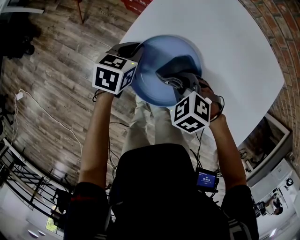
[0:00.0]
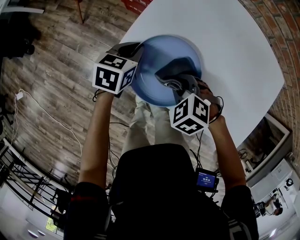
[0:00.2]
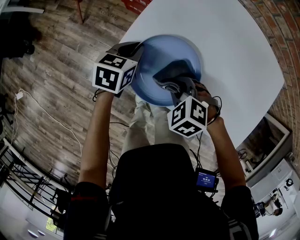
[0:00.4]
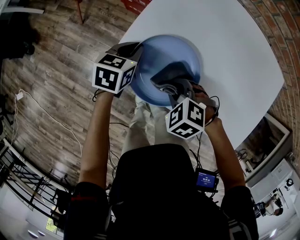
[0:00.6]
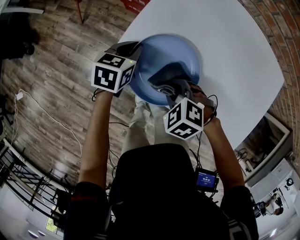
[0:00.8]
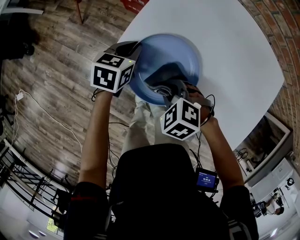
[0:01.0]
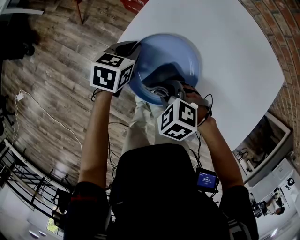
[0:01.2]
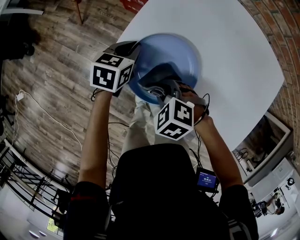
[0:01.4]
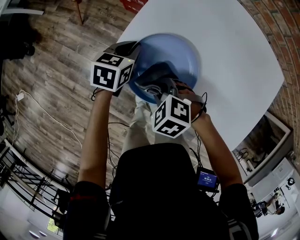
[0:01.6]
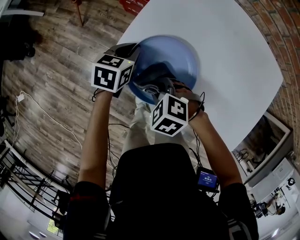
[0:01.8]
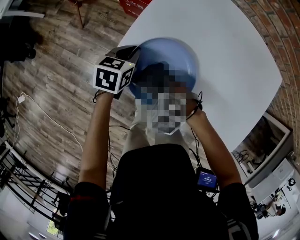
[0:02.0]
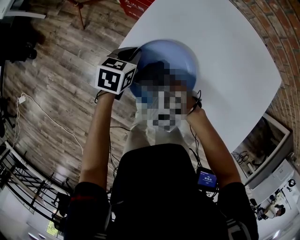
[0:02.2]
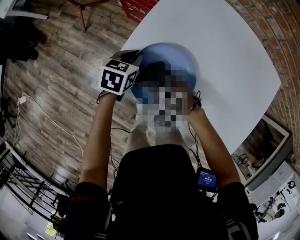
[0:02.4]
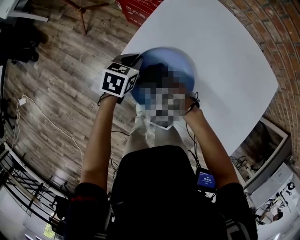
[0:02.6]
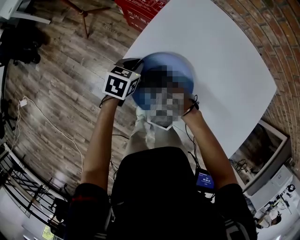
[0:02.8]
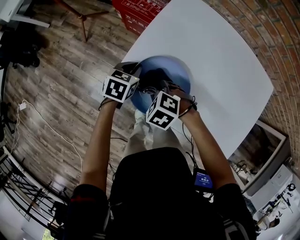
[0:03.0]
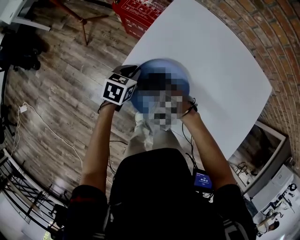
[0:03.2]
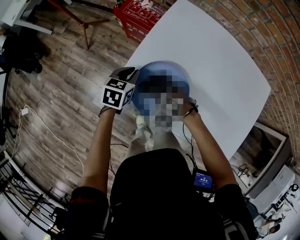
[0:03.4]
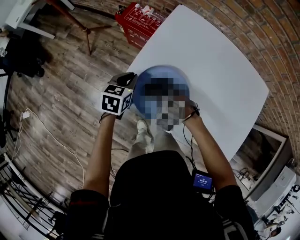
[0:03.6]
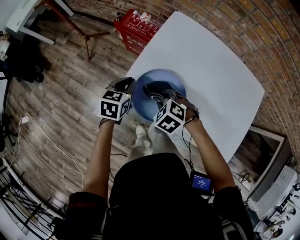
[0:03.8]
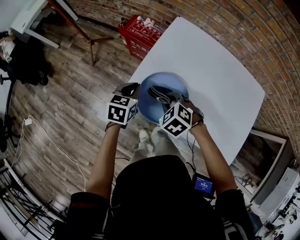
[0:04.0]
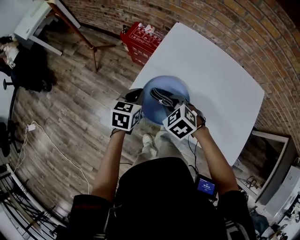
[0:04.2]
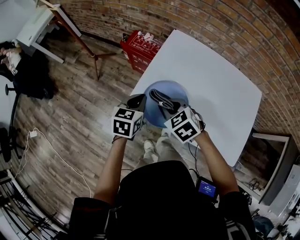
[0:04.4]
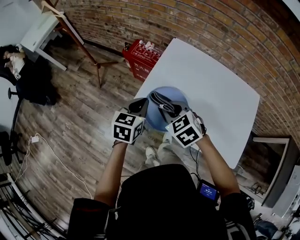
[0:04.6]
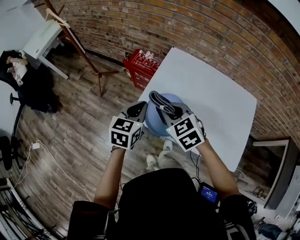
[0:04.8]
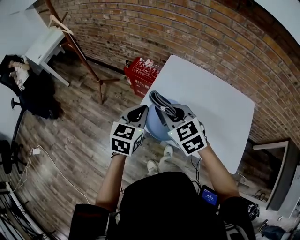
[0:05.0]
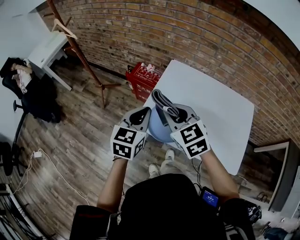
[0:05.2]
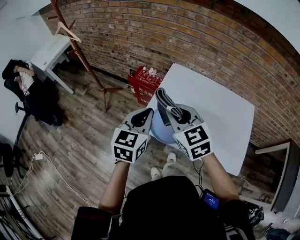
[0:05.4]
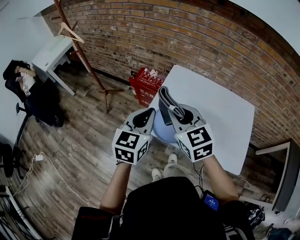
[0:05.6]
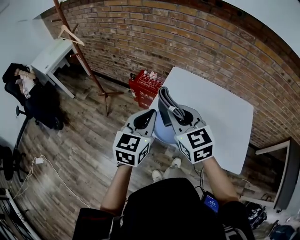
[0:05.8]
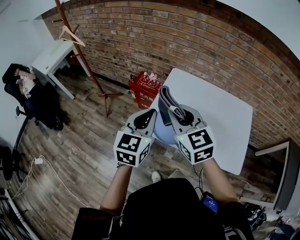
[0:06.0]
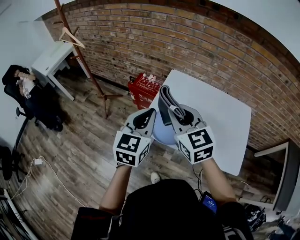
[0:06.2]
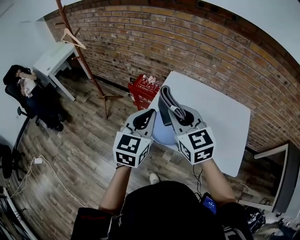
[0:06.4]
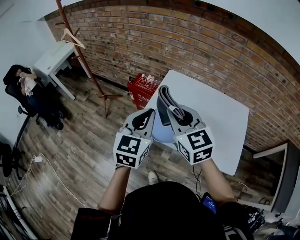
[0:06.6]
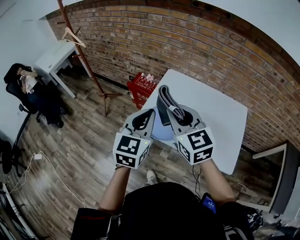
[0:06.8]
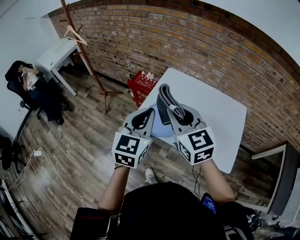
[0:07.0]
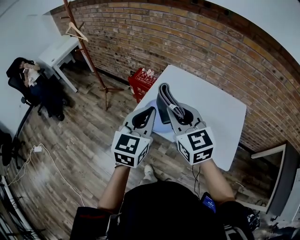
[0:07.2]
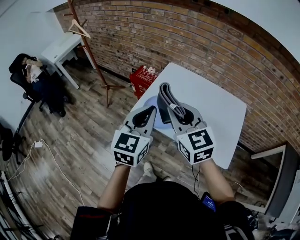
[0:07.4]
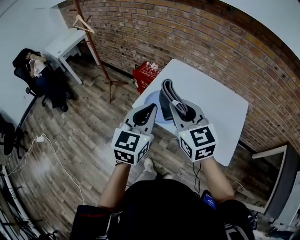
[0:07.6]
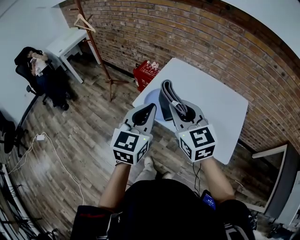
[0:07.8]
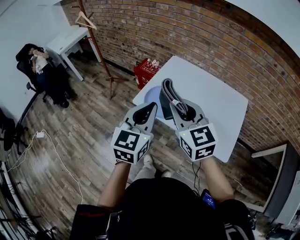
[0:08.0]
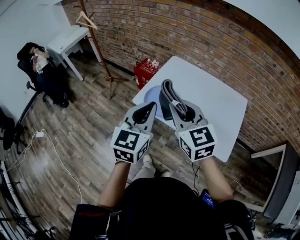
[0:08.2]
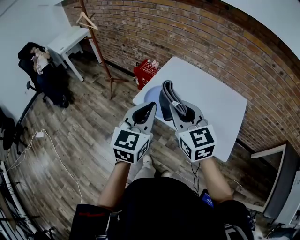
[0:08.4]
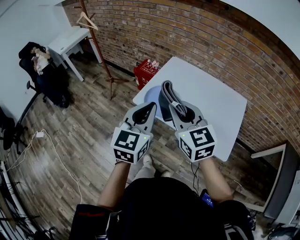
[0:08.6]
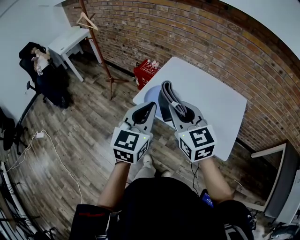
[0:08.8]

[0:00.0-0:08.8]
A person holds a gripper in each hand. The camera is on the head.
0.0 to 1.4 s: The right gripper heads to the left, covering about 5 cm.
1.4 to 3.0 s: The right gripper shifts approximately 5 cm forward.
3.0 to 4.4 s: The right gripper moves upward, approximately 15 cm, and changes its angle by some 30 degrees. Meanwhile the left gripper travels upward and backward by roughly 15 cm.
4.4 to 5.8 s: Both grippers move upward, some 20 cm. The right gripper angles its fingers upward, by some 30 degrees. Meanwhile the left gripper changes its angle by about 30 degrees.
5.8 to 7.4 s: Both grippers travel together backward and to the right, some 15 cm.
7.4 to 8.8 s: The two grippers go about 5 cm backward.

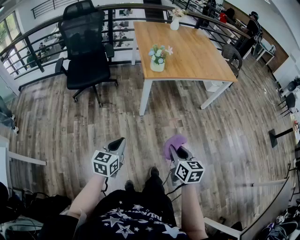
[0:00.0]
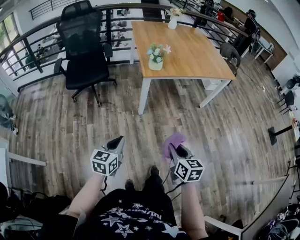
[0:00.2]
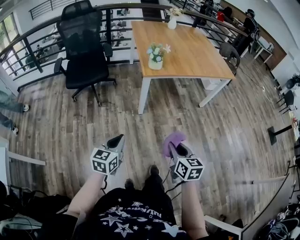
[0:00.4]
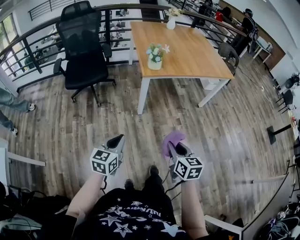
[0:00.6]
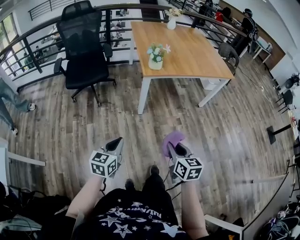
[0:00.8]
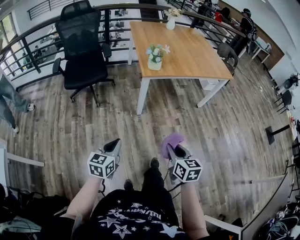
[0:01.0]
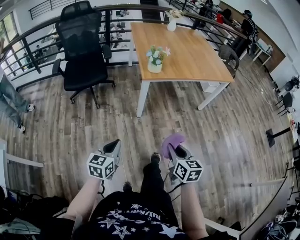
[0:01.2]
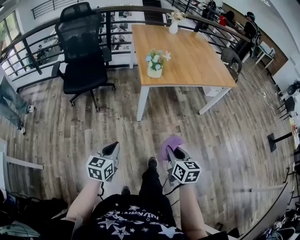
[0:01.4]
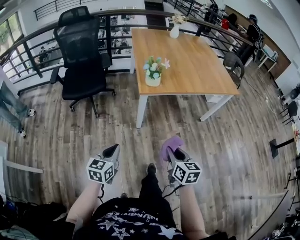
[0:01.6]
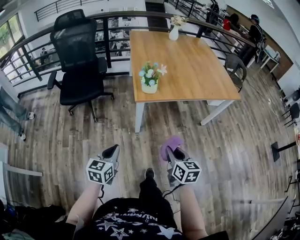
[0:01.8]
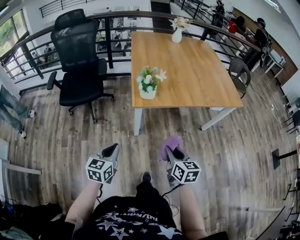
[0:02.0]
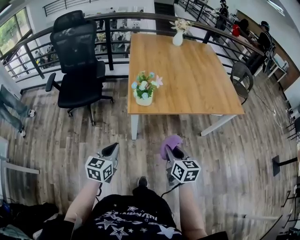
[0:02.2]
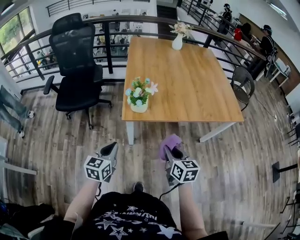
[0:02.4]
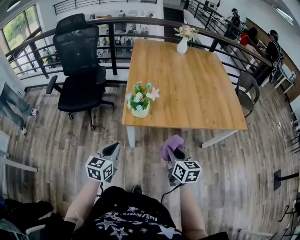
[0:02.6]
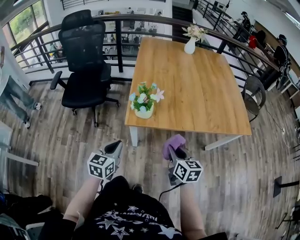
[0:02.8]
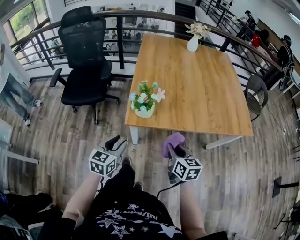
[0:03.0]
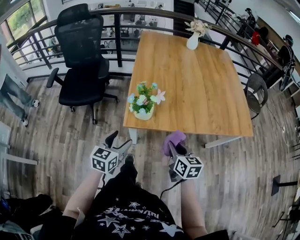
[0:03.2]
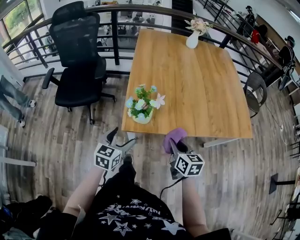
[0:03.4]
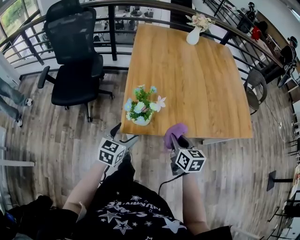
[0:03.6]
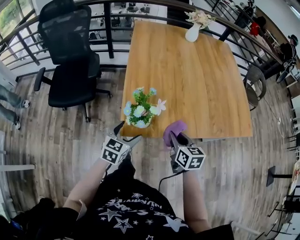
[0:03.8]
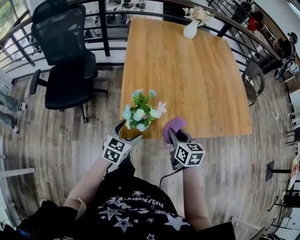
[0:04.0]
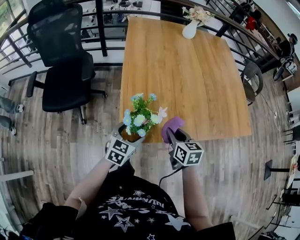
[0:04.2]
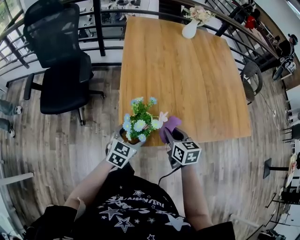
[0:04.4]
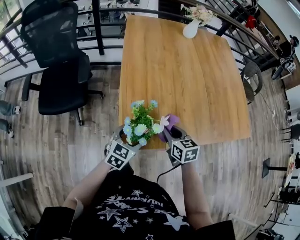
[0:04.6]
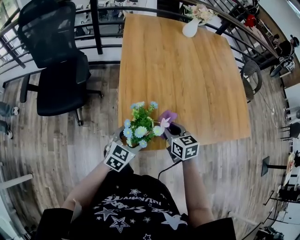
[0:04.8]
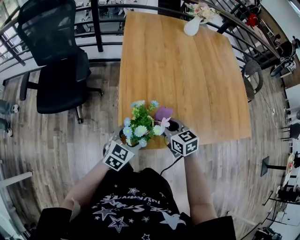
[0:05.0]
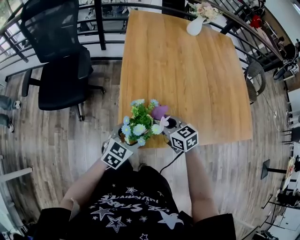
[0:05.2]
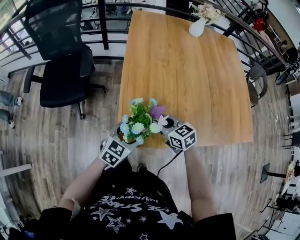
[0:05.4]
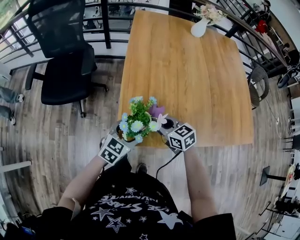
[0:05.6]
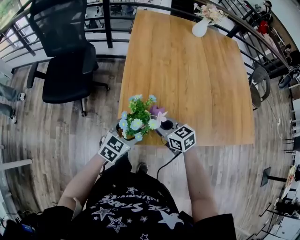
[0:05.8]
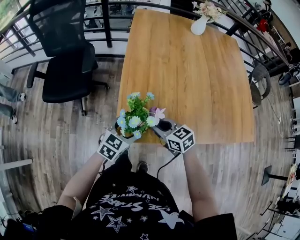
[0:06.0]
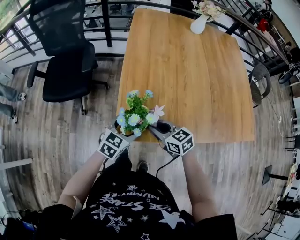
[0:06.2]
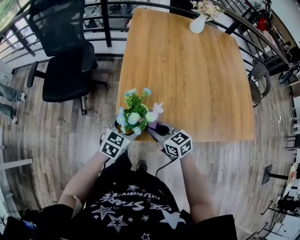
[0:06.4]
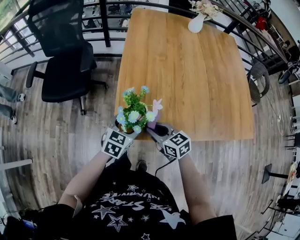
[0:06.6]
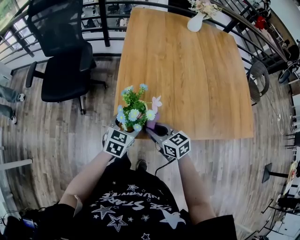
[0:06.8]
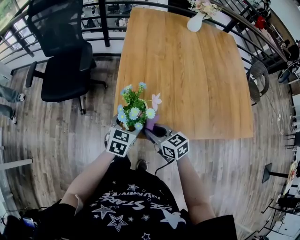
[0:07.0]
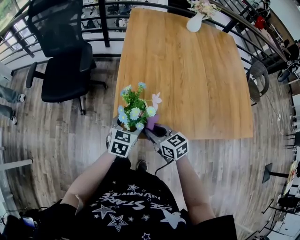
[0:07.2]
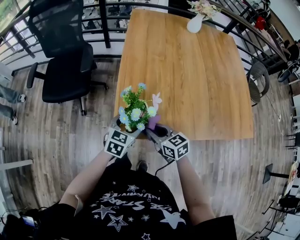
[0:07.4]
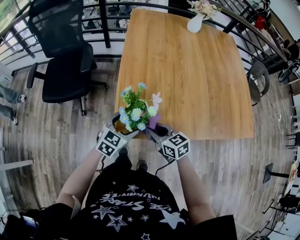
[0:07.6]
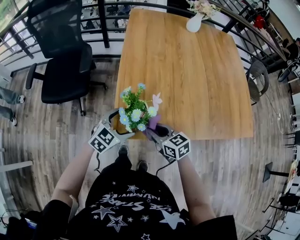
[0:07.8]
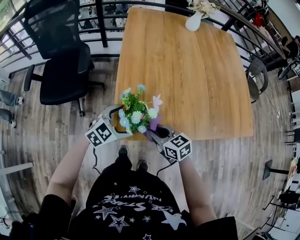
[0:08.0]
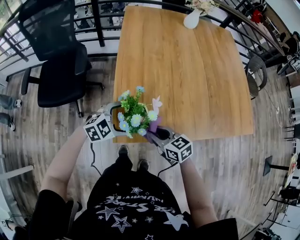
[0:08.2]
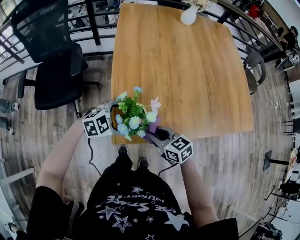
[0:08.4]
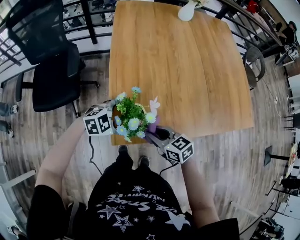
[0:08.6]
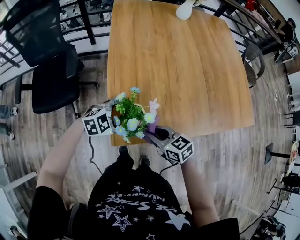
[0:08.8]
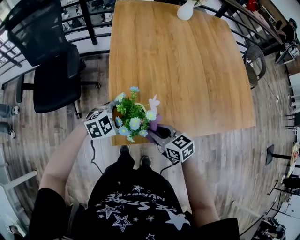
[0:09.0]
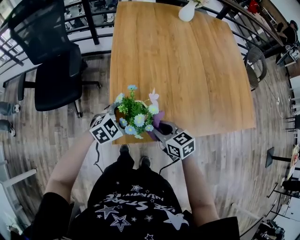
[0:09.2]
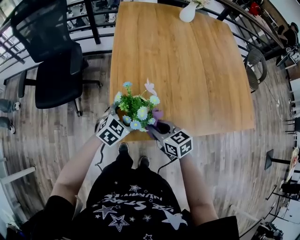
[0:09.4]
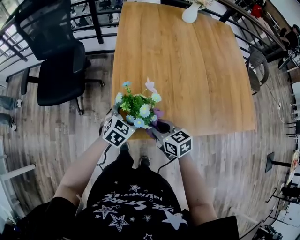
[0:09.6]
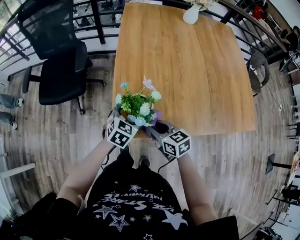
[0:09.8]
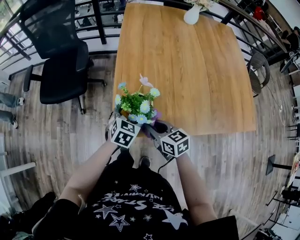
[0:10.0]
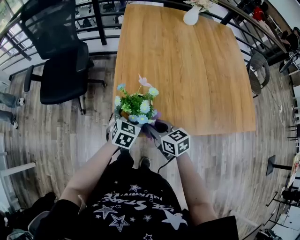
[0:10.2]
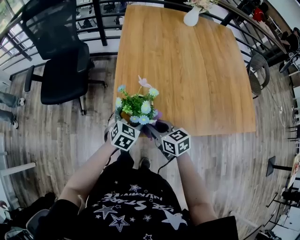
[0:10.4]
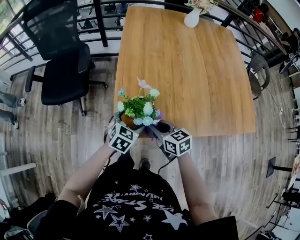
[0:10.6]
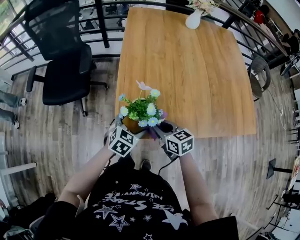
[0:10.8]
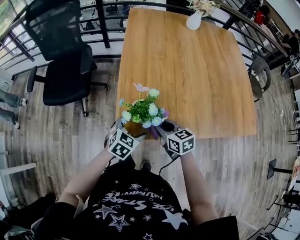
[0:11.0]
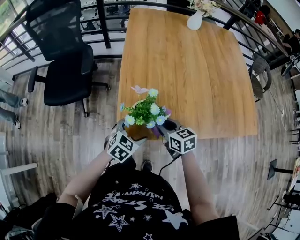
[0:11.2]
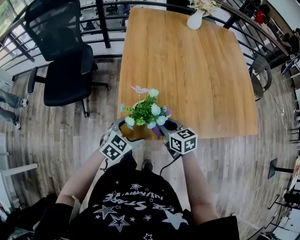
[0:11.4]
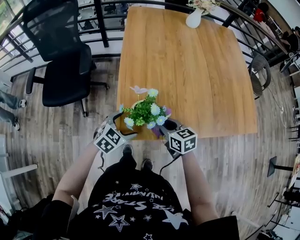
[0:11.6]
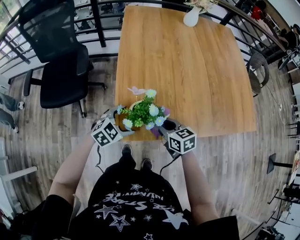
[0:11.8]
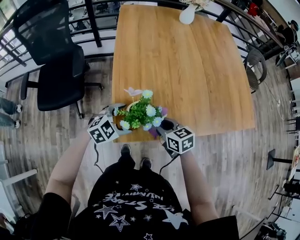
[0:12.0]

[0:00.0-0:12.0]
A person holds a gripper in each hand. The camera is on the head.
0.0 to 1.6 s: The two grippers go about 10 cm forward.
1.6 to 3.0 s: The right gripper moves forward, about 30 cm. Meanwhile the left gripper shifts approximately 30 cm forward and to the right.
3.0 to 4.4 s: The two grippers go roughly 20 cm forward. The left gripper swivels approximately 20 degrees, and opens its fingers.
4.4 to 6.0 s: The right gripper travels to the left by some 5 cm, and rotates about 30 degrees.
6.0 to 7.6 s: The grippers stay close to where they were, moving slightly.
7.6 to 9.0 s: The left gripper turns by about 40 degrees.
9.0 to 10.4 s: The left gripper changes its angle by approximately 50 degrees.
10.4 to 12.0 s: The left gripper rotates some 40 degrees.

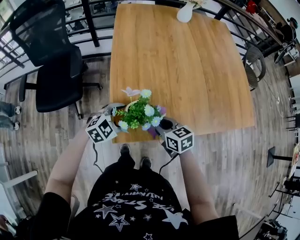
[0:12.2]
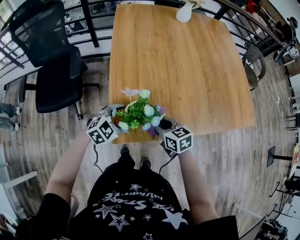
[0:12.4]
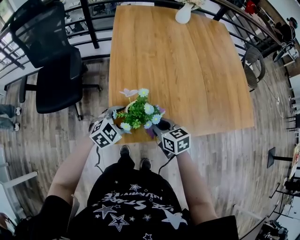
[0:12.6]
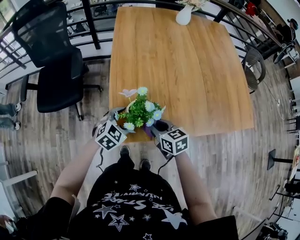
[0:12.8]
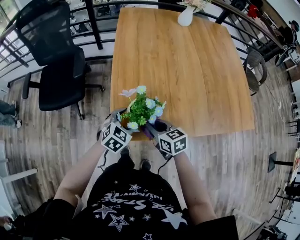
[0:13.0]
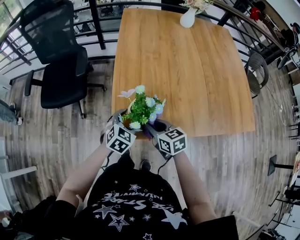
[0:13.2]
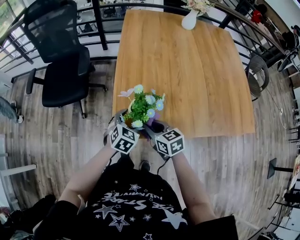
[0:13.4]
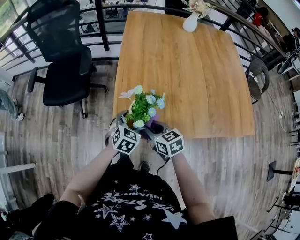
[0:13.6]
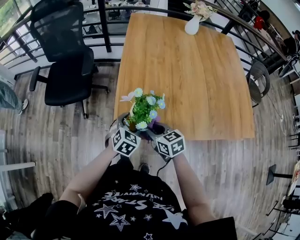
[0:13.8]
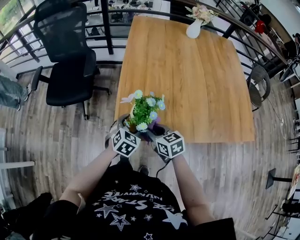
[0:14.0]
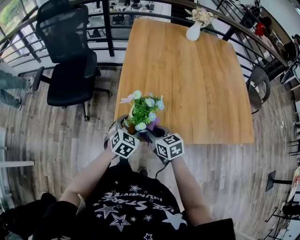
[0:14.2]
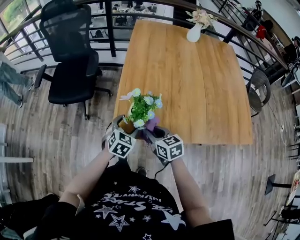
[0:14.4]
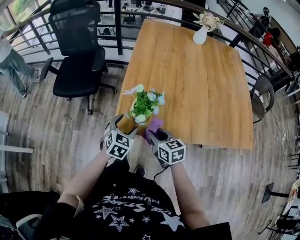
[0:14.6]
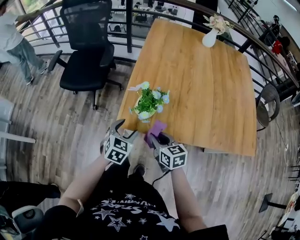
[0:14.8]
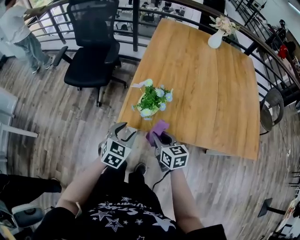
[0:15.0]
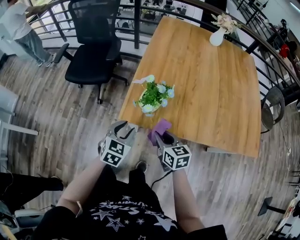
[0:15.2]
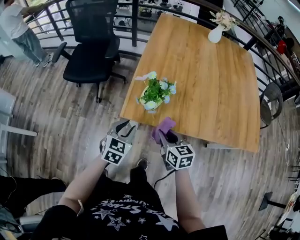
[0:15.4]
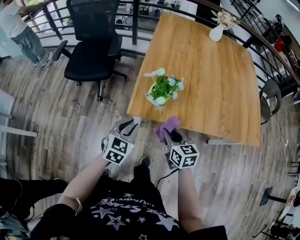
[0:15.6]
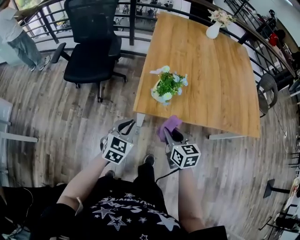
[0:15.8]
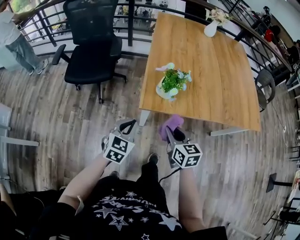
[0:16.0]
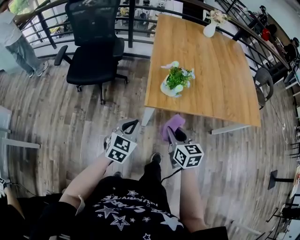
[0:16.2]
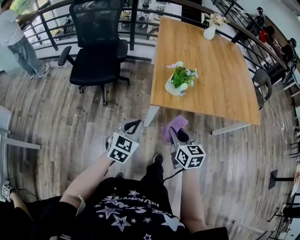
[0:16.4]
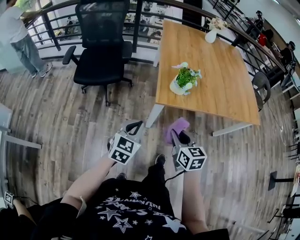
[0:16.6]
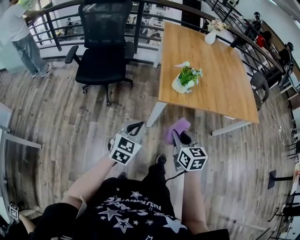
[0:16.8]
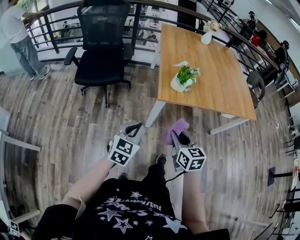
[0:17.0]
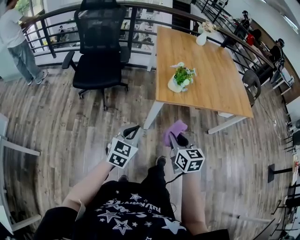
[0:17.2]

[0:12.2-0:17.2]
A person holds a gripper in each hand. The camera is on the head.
12.2 to 13.8 s: The left gripper changes its angle by some 40 degrees.
13.8 to 15.6 s: The right gripper travels backward by about 10 cm. The left gripper goes approximately 15 cm backward, to the left and upward, and closes up.
15.6 to 17.2 s: The two grippers go some 25 cm backward and to the left.
